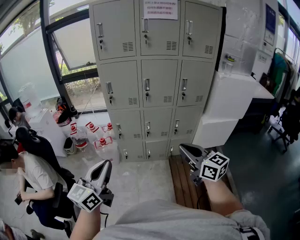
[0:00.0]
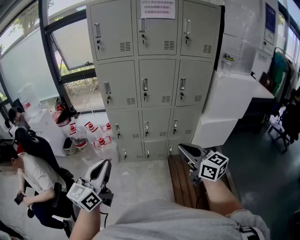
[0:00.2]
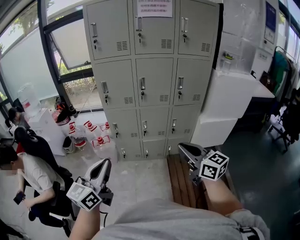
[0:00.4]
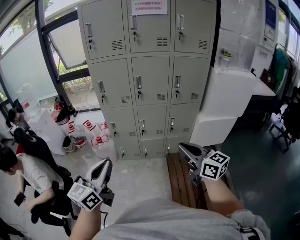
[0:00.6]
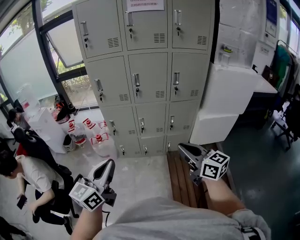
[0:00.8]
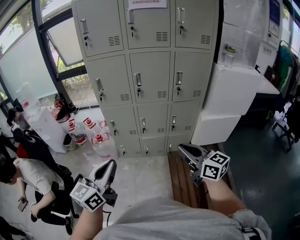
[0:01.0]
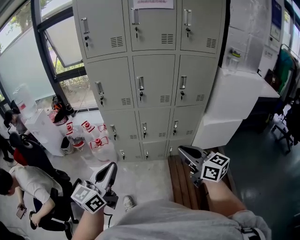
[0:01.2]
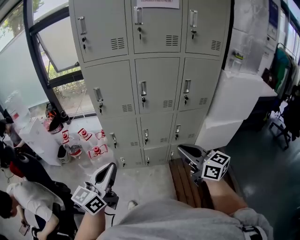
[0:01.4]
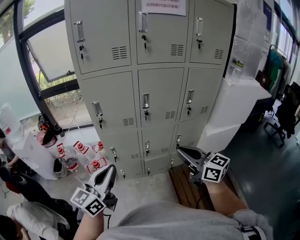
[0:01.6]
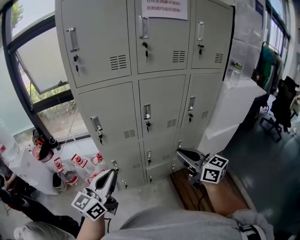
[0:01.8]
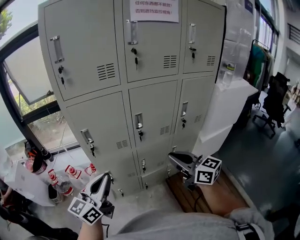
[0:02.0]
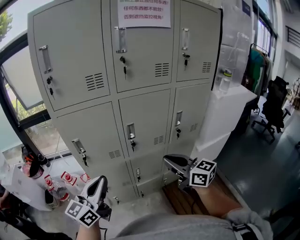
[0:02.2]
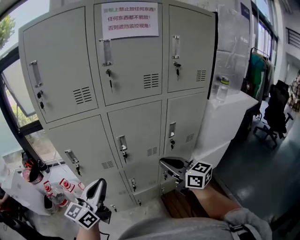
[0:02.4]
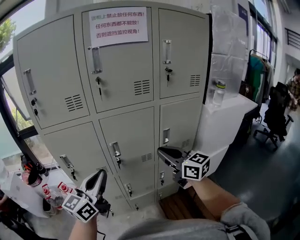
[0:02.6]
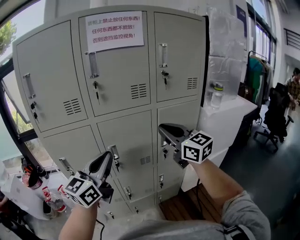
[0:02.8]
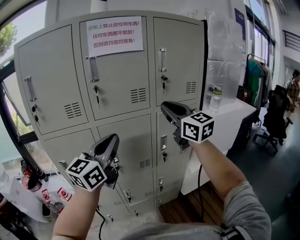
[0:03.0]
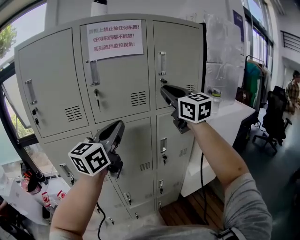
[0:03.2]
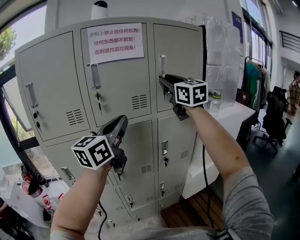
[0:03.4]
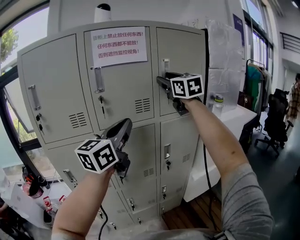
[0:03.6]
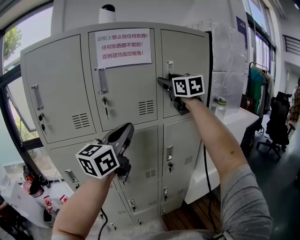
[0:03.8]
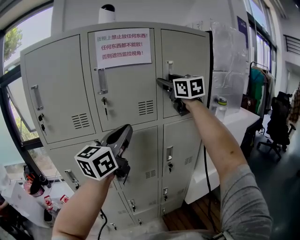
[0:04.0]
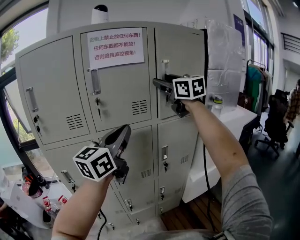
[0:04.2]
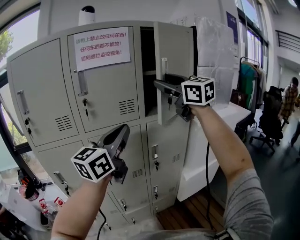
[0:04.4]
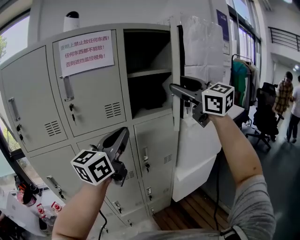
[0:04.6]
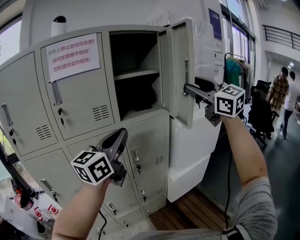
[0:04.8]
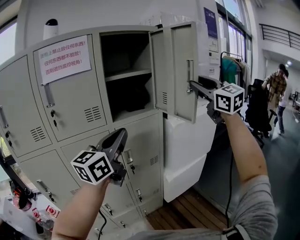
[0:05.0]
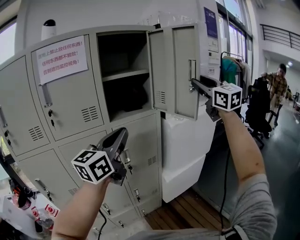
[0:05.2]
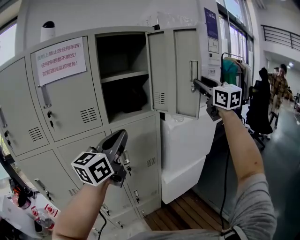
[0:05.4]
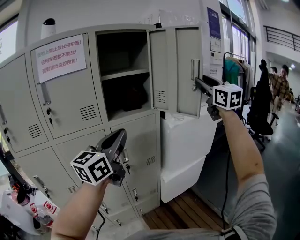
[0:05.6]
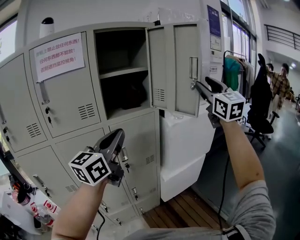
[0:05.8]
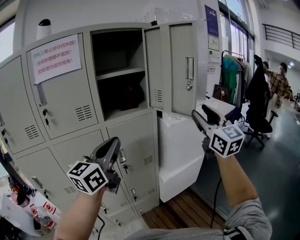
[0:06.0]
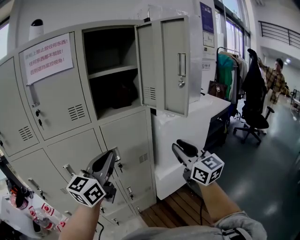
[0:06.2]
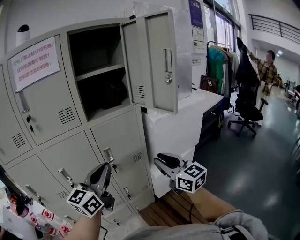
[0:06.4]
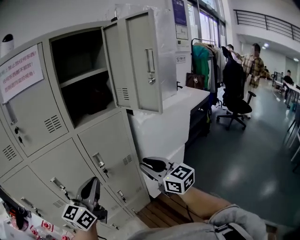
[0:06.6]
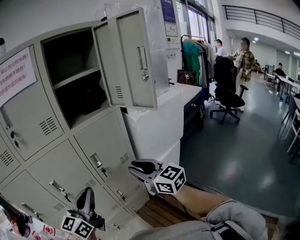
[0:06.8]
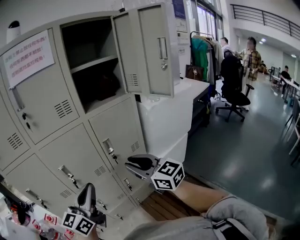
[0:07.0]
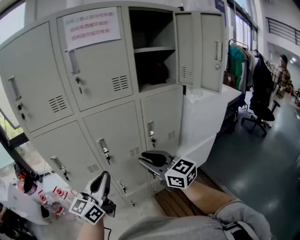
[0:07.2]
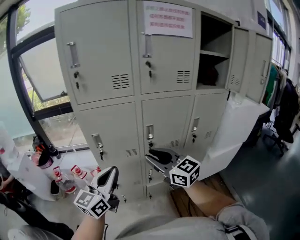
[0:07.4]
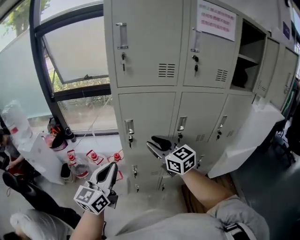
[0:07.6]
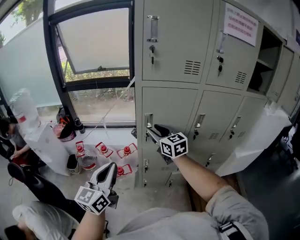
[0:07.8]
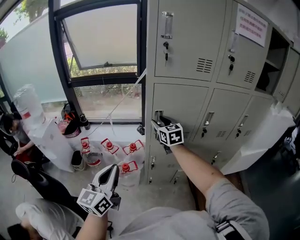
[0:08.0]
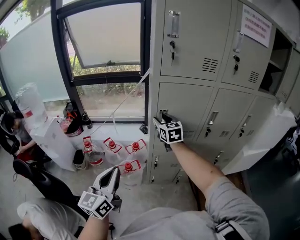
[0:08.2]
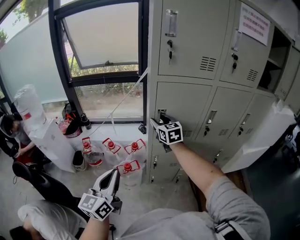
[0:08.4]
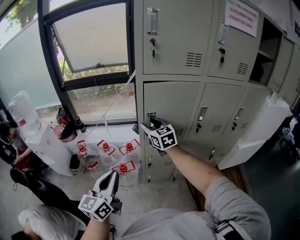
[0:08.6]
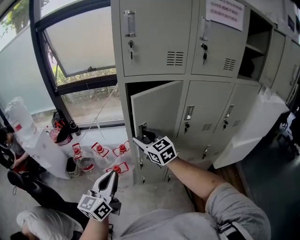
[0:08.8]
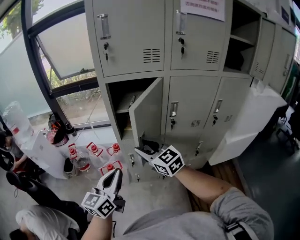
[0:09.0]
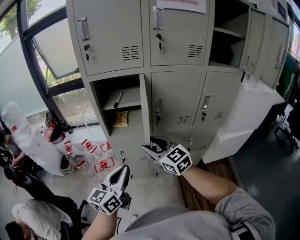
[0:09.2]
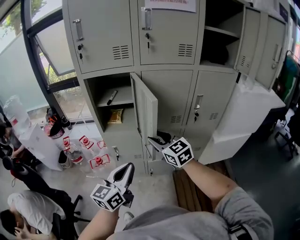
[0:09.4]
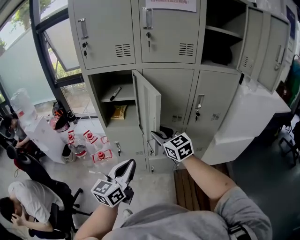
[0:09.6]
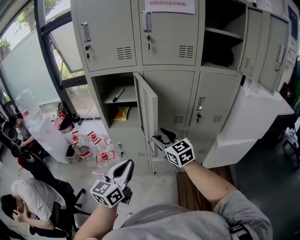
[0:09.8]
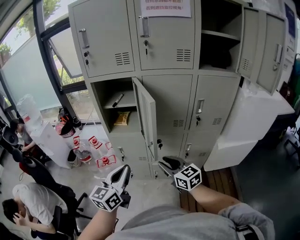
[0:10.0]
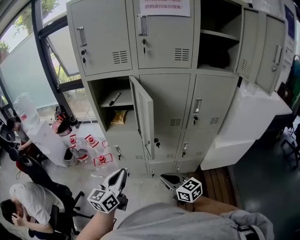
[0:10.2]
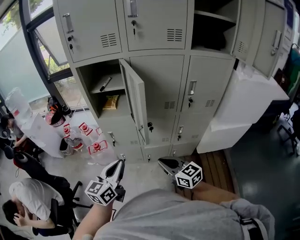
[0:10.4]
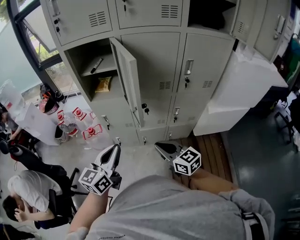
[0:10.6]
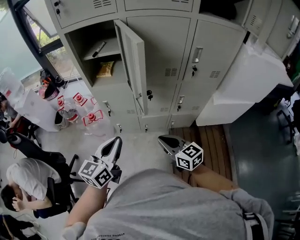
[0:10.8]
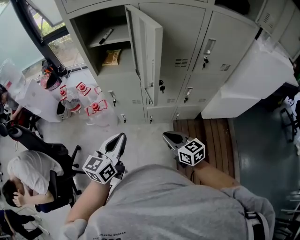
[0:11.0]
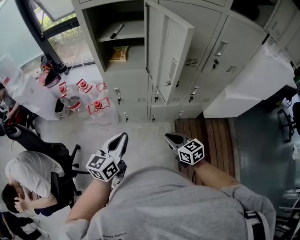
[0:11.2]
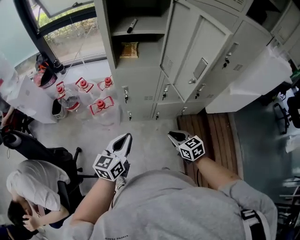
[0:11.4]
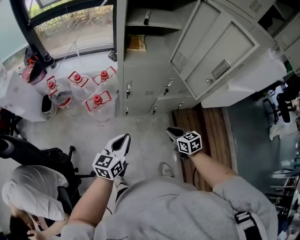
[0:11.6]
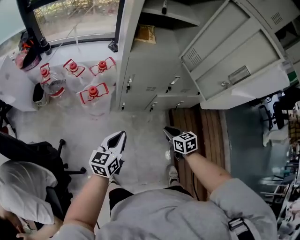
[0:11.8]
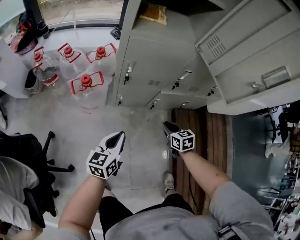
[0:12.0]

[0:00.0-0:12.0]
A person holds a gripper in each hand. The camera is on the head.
0:00.0 to 0:01.6: The grippers both shift forward by about 25 cm.
0:01.6 to 0:03.0: Both grippers travel together forward, upward and to the right, approximately 40 cm. The right gripper rotates some 30 degrees.
0:03.0 to 0:04.4: The left gripper is displaced to the right and upward by roughly 10 cm; the right gripper travels upward by about 15 cm, and opens.
0:04.4 to 0:06.0: The left gripper travels to the right by approximately 15 cm. The right gripper travels to the right by some 30 cm, and rotates some 30 degrees.
0:06.0 to 0:07.6: The pair of grippers is taken about 70 cm. The right gripper turns by roughly 50 degrees. The left gripper changes its angle by some 30 degrees.
0:07.6 to 0:09.0: The right gripper is displaced downward by some 5 cm, and reaches about 15 cm forward, then returns. Meanwhile the left gripper moves downward and backward, approximately 10 cm, and moves approximately 15 cm to the left and comes back.
0:09.0 to 0:10.4: The left gripper travels to the right and backward by approximately 20 cm; the right gripper goes approximately 35 cm to the right, backward and downward, and closes.
0:10.4 to 0:12.0: The left gripper moves downward and to the left, approximately 40 cm. The right gripper heads downward, covering about 40 cm, and angles its fingers downward, by approximately 30 degrees.

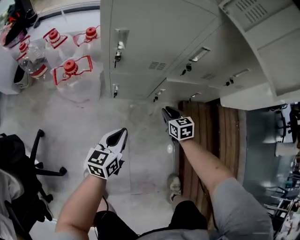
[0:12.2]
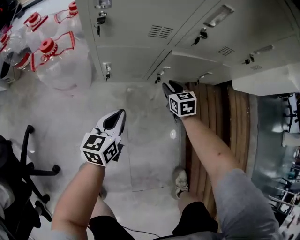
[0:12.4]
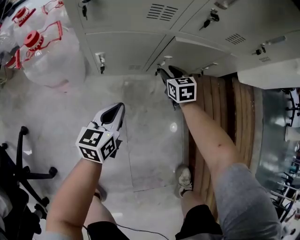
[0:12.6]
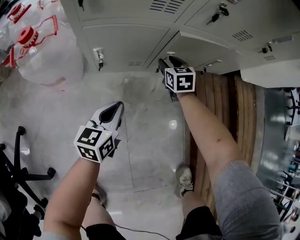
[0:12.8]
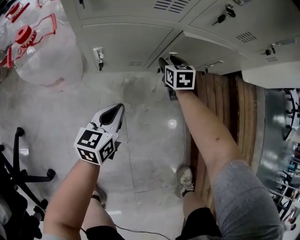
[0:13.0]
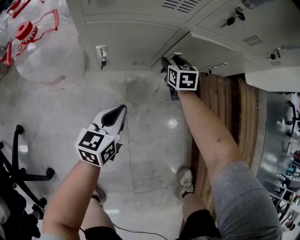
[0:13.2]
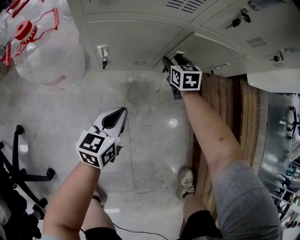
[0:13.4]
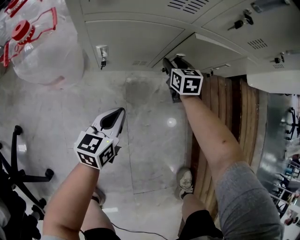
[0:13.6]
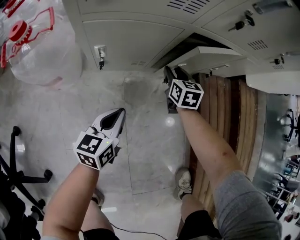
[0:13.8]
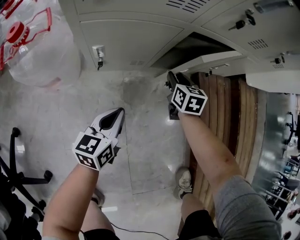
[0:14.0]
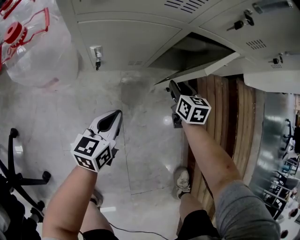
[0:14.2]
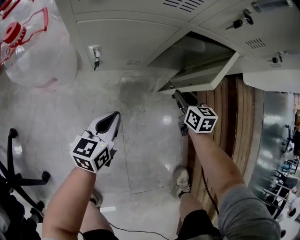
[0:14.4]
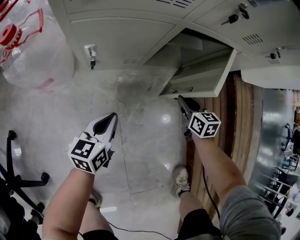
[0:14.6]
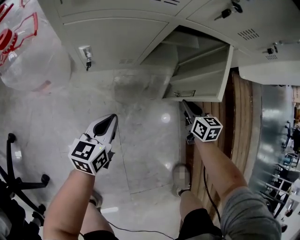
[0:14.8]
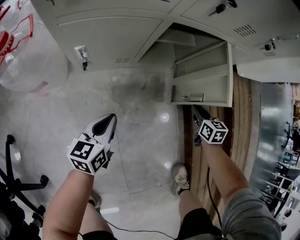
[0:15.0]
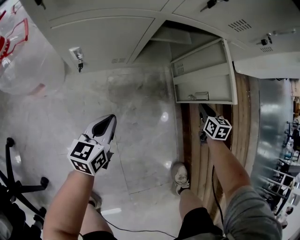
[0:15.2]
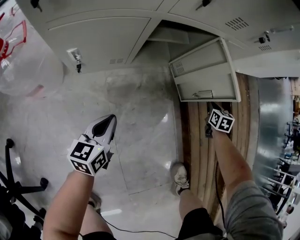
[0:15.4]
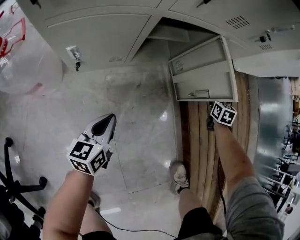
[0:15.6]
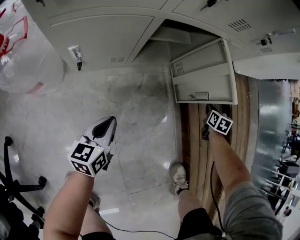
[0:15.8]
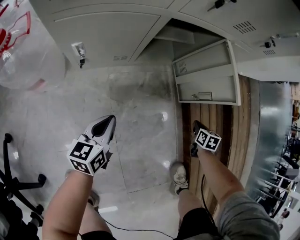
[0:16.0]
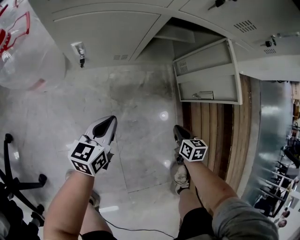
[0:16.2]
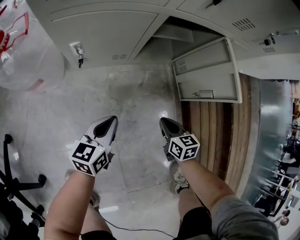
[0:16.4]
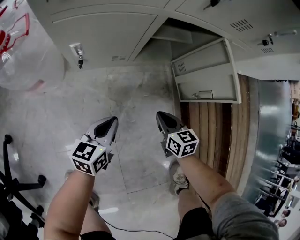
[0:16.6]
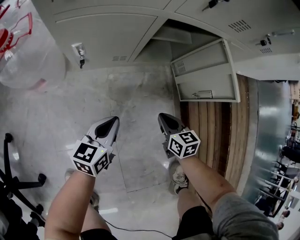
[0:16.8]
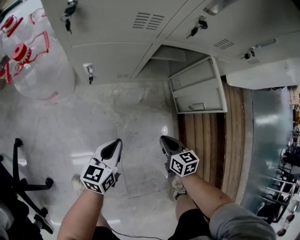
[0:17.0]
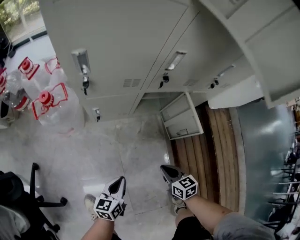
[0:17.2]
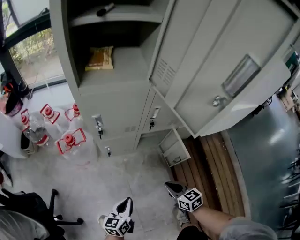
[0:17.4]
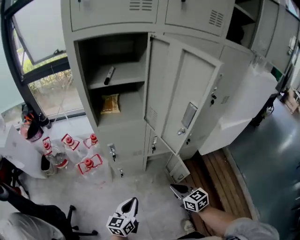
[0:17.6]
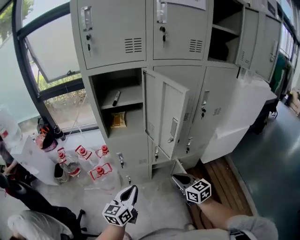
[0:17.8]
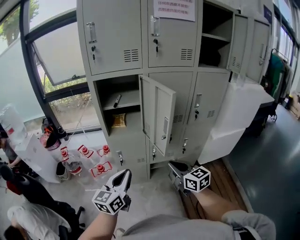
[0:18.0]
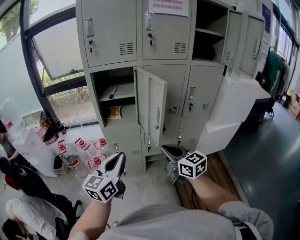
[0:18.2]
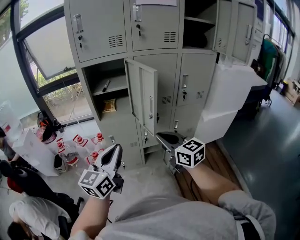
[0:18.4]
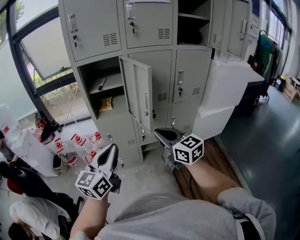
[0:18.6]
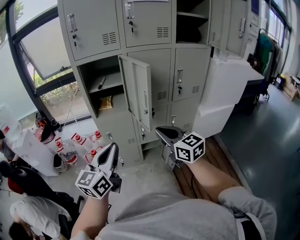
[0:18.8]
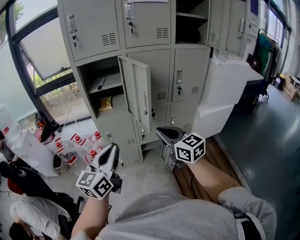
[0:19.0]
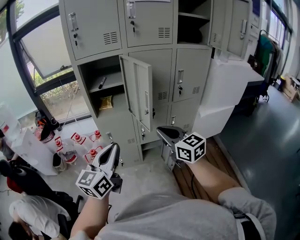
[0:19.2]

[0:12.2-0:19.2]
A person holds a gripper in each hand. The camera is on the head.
0:12.2 to 0:13.6: The left gripper heads downward, covering about 20 cm, while the right gripper goes about 25 cm downward and forward, and opens its fingers.
0:13.6 to 0:15.0: The right gripper goes some 30 cm to the right and backward, and closes.
0:15.0 to 0:16.4: The right gripper goes approximately 15 cm backward and to the left.
0:16.4 to 0:17.8: The grippers both shift upward by roughly 70 cm. The left gripper turns by about 20 degrees; the right gripper swivels approximately 30 degrees.
0:17.8 to 0:19.2: Both grippers move upward, some 20 cm.

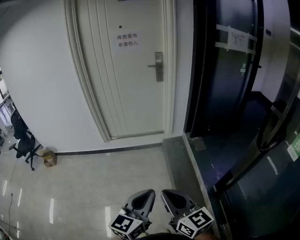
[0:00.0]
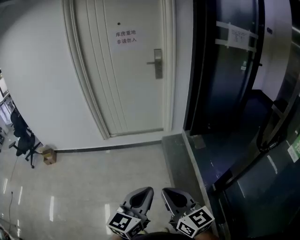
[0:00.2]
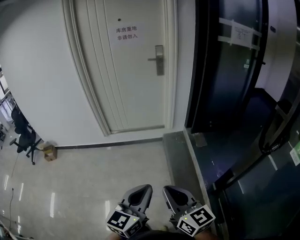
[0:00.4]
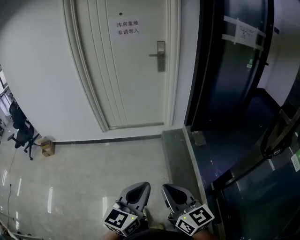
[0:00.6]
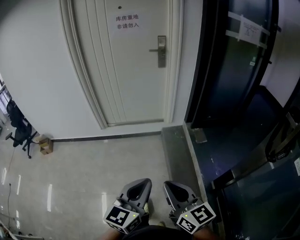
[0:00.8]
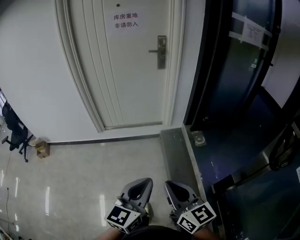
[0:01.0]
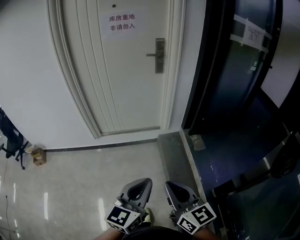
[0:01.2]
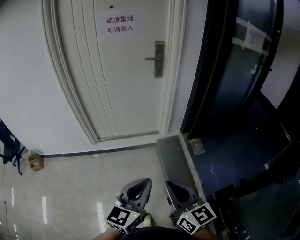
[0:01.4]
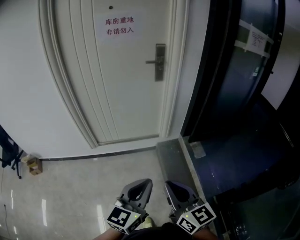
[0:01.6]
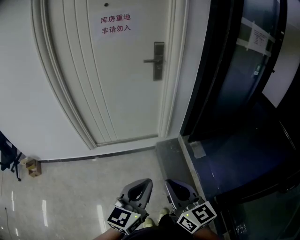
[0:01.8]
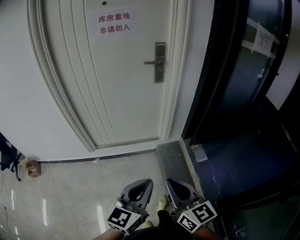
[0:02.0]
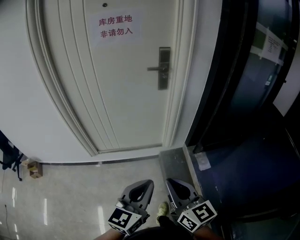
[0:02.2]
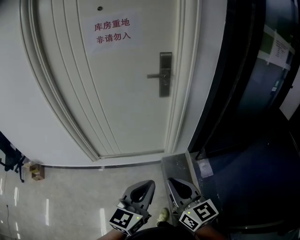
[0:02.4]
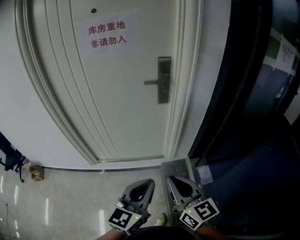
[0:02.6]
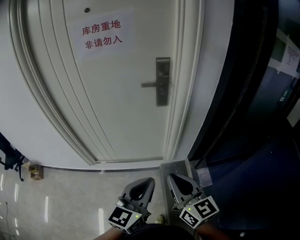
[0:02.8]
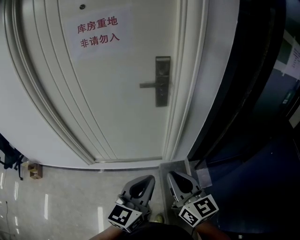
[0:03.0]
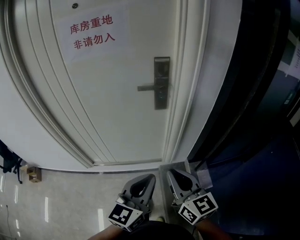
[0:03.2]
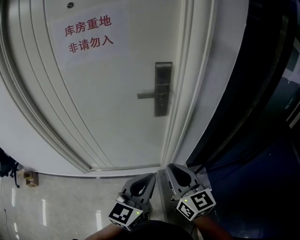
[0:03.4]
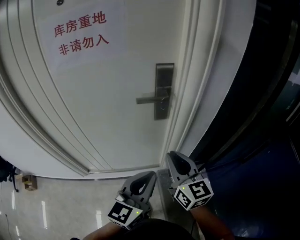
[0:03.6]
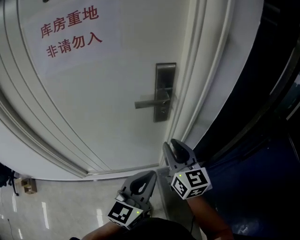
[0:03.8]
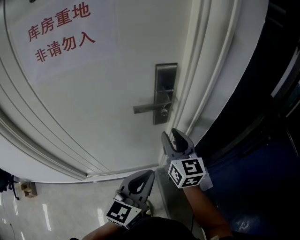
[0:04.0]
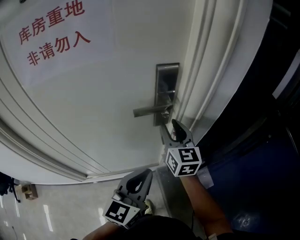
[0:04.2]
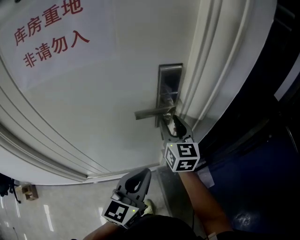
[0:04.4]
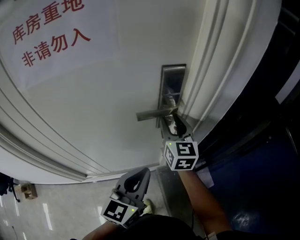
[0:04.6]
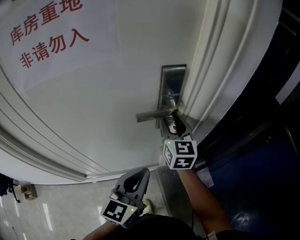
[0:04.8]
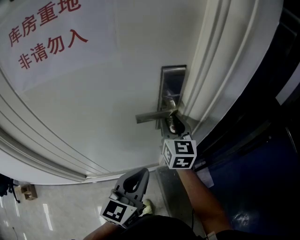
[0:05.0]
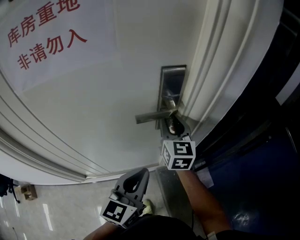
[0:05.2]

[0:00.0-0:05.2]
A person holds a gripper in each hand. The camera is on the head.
0:00.0 to 0:01.8: The two grippers go roughly 35 cm forward.
0:01.8 to 0:03.4: Both grippers are carried forward, some 40 cm.
0:03.4 to 0:05.2: The right gripper is displaced forward by approximately 30 cm, turns by some 30 degrees, and opens up. The left gripper heads forward and to the left, covering approximately 20 cm.
